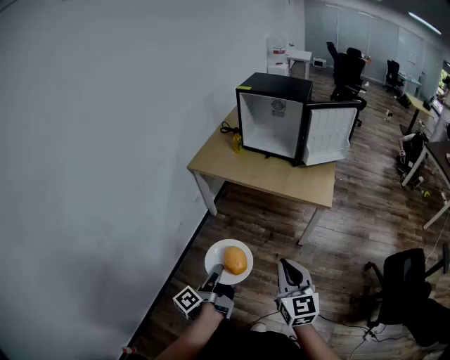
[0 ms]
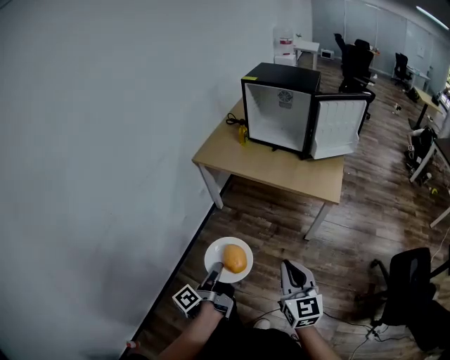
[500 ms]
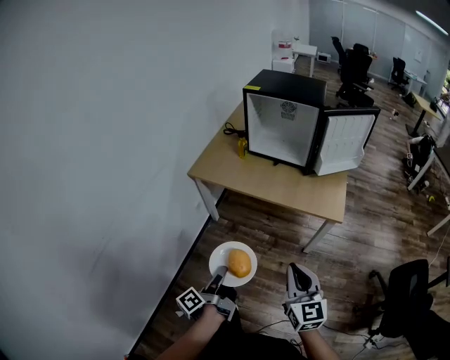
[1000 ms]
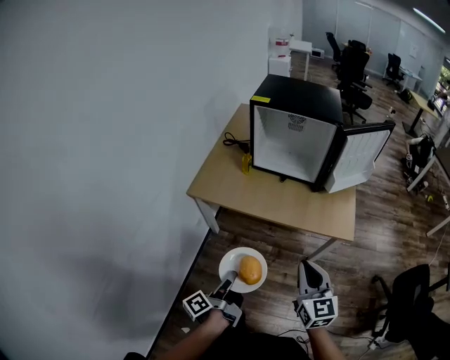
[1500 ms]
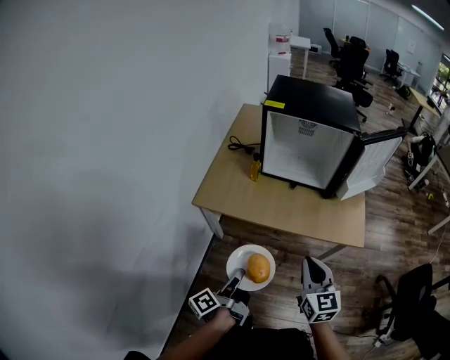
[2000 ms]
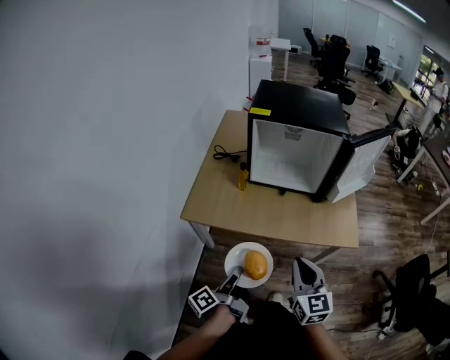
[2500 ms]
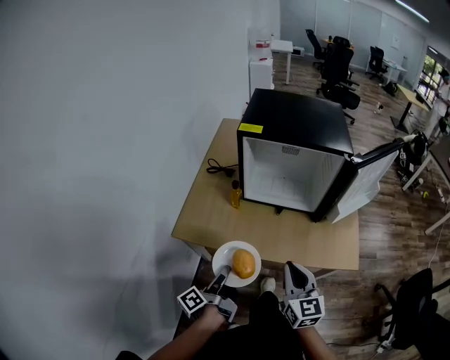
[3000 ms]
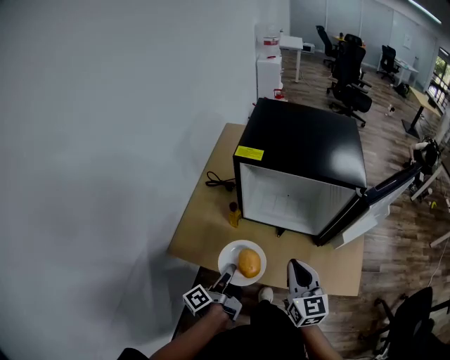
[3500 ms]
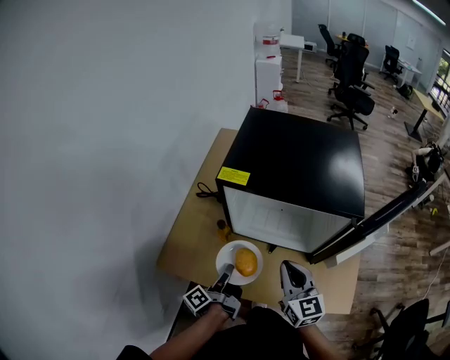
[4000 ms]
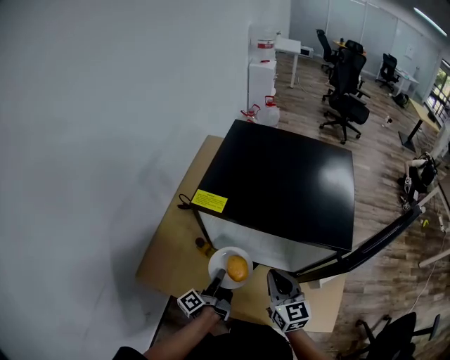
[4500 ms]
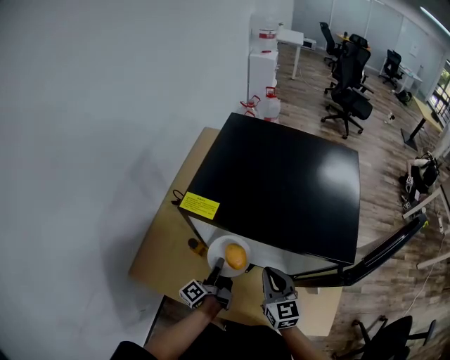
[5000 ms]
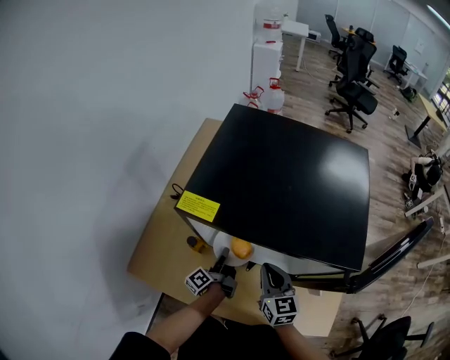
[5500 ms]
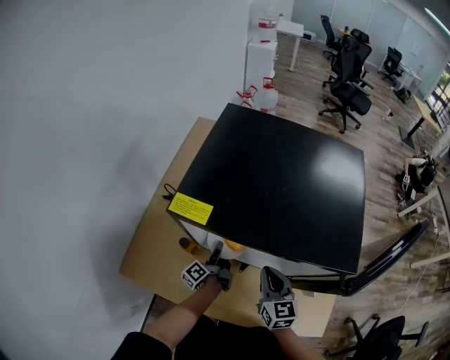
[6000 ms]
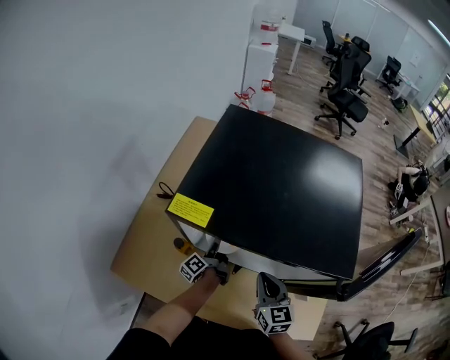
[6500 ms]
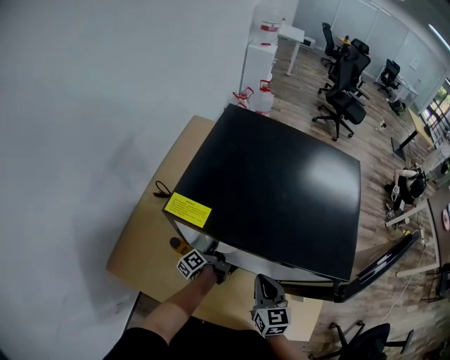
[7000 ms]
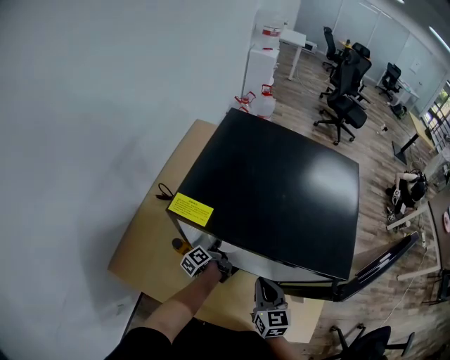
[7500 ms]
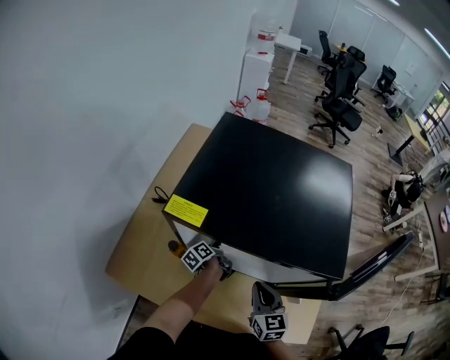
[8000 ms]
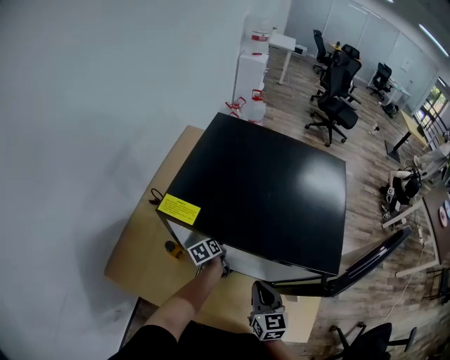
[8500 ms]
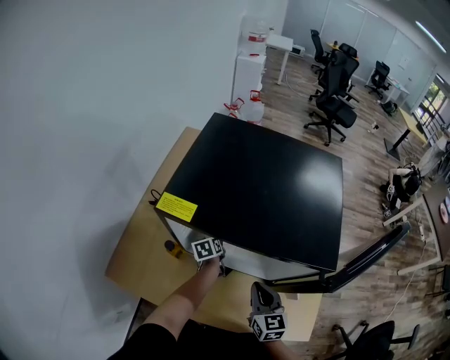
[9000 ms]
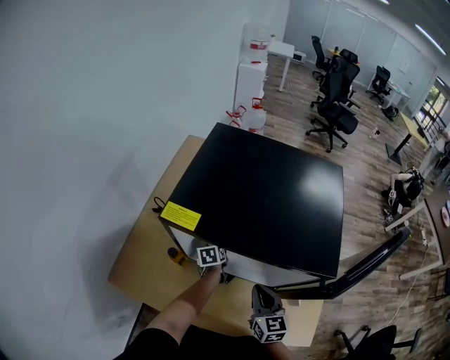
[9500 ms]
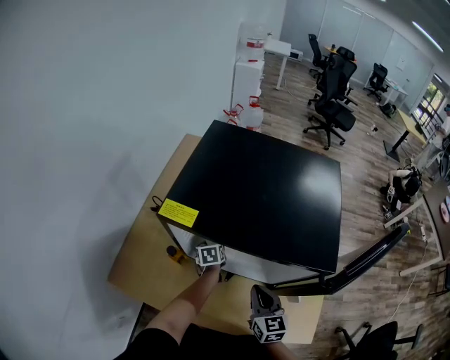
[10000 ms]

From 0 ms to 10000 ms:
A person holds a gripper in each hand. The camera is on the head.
From 0 ms to 2000 ms: The right gripper shifts by approximately 35 cm.
From 2000 ms to 4000 ms: The right gripper ends up approximately 35 cm from where it was.
From 4000 ms to 6000 ms: The right gripper moves approximately 15 cm.

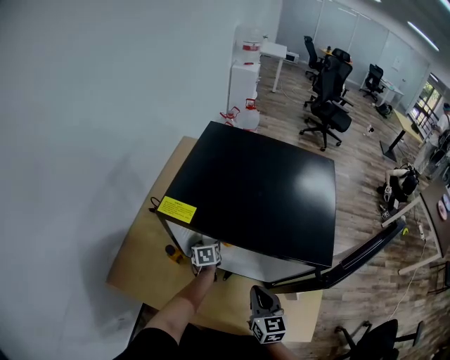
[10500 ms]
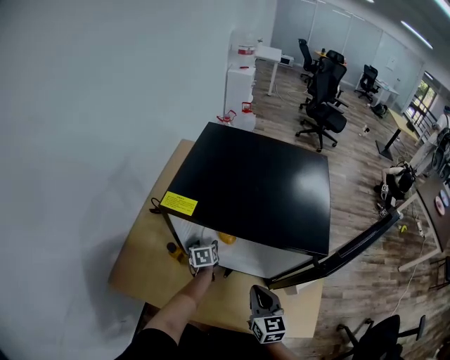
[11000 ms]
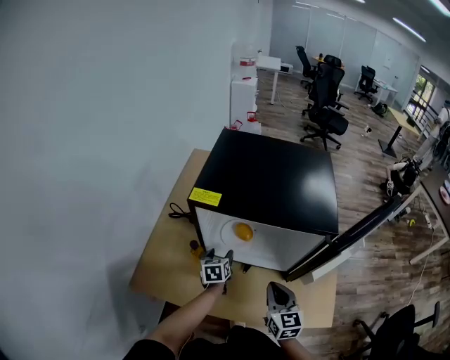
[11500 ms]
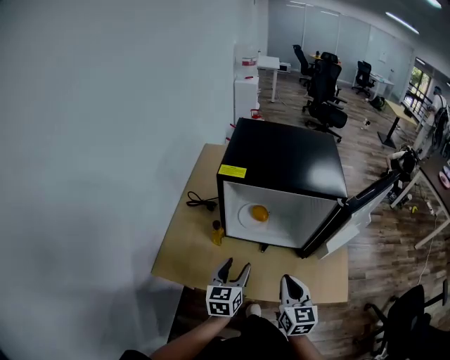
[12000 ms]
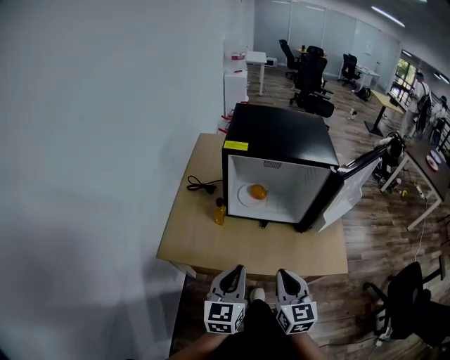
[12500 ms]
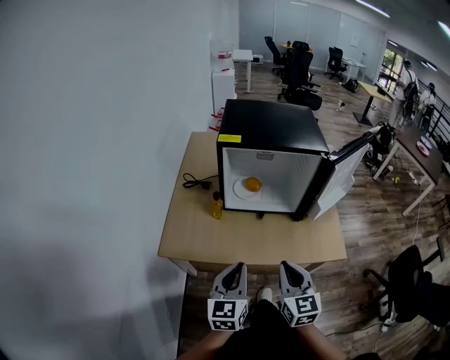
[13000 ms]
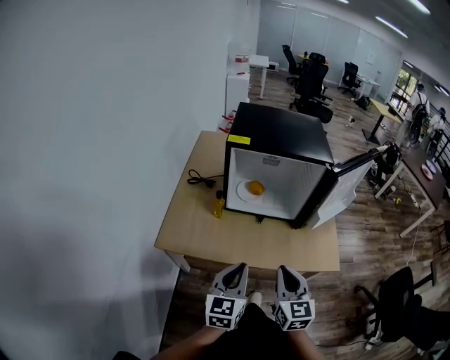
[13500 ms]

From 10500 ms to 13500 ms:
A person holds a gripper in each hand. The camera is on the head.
From 10500 ms to 12000 ms: The right gripper shifts by about 15 cm.
From 12000 ms to 13500 ms: The right gripper moves some 15 cm.

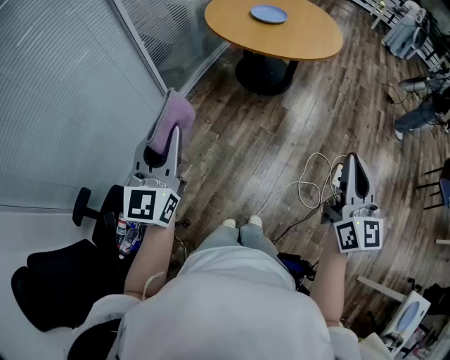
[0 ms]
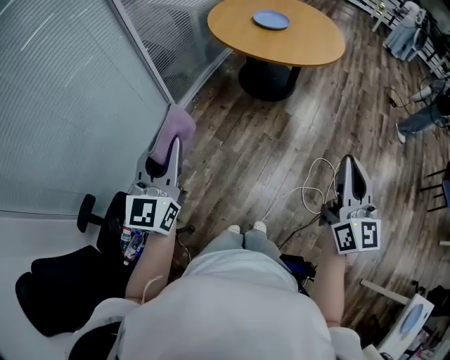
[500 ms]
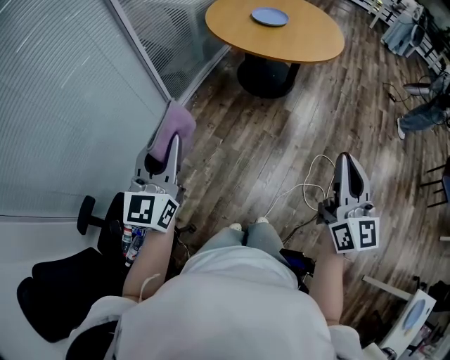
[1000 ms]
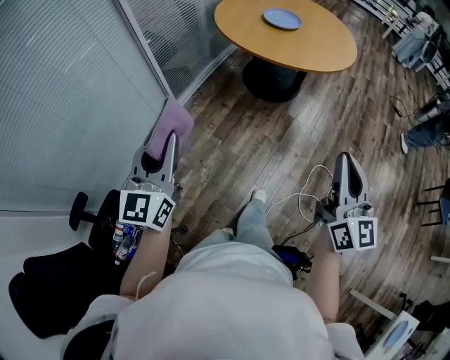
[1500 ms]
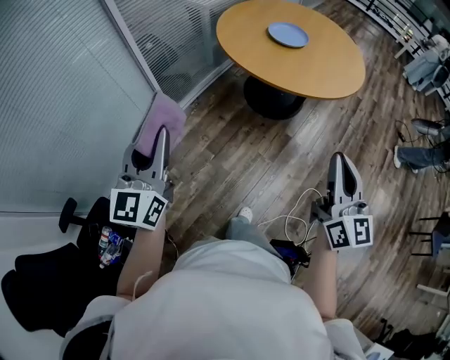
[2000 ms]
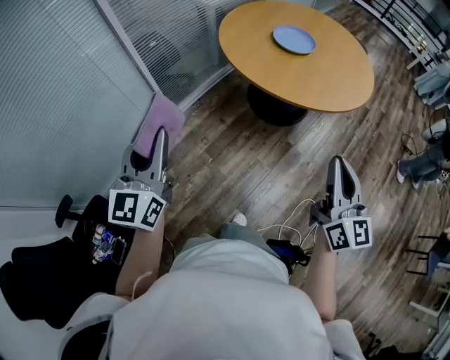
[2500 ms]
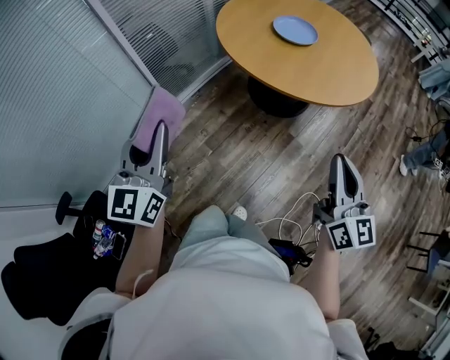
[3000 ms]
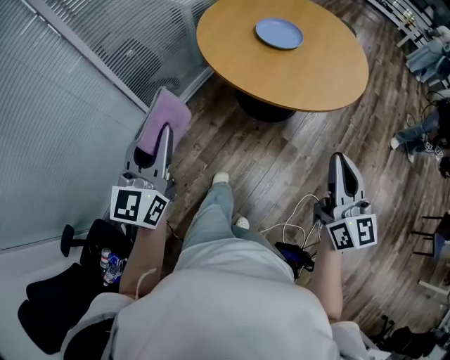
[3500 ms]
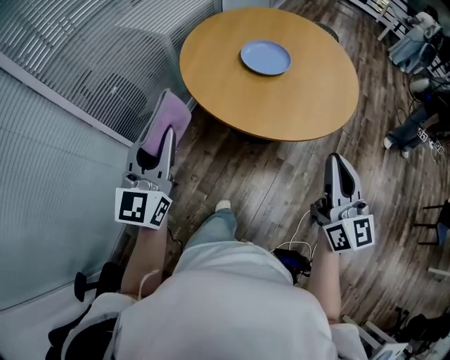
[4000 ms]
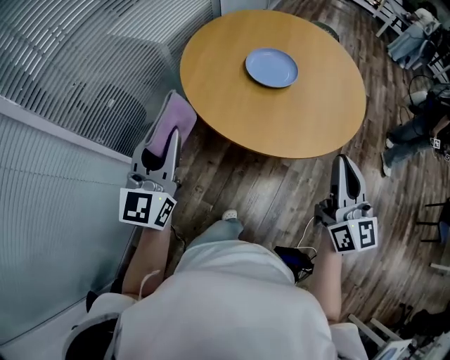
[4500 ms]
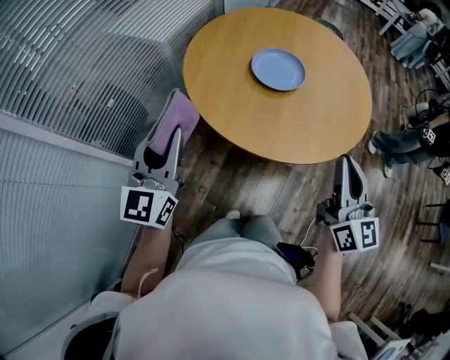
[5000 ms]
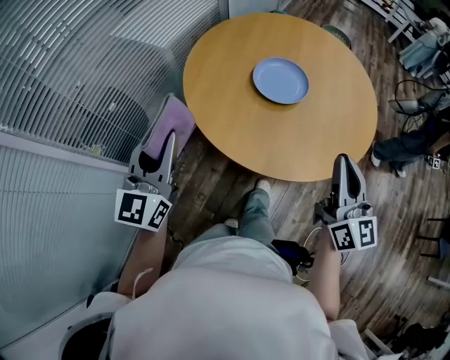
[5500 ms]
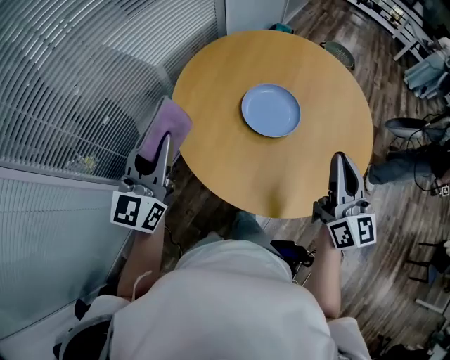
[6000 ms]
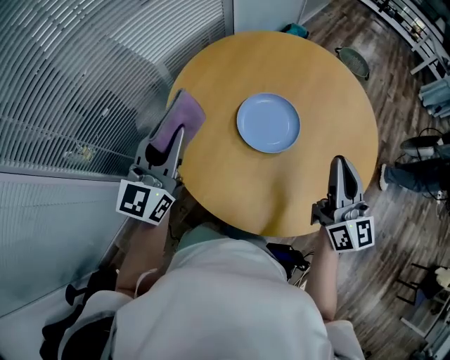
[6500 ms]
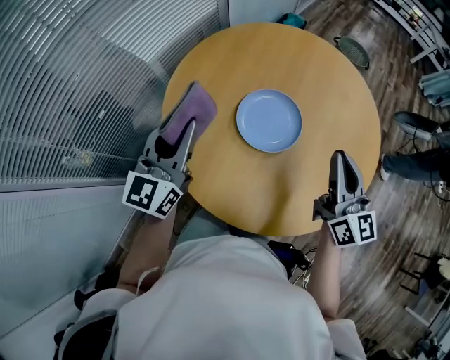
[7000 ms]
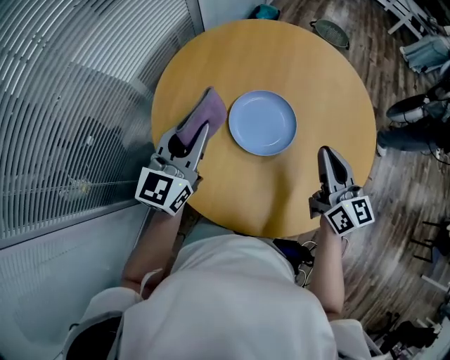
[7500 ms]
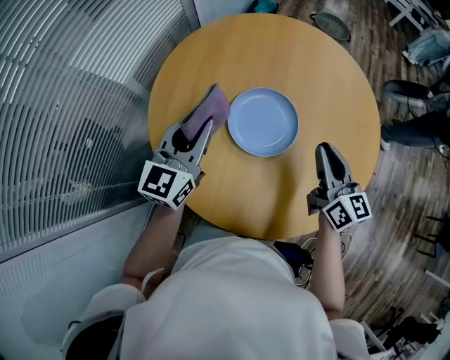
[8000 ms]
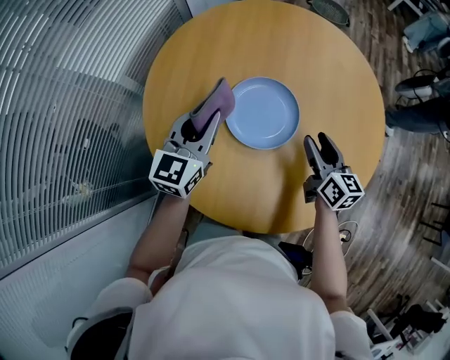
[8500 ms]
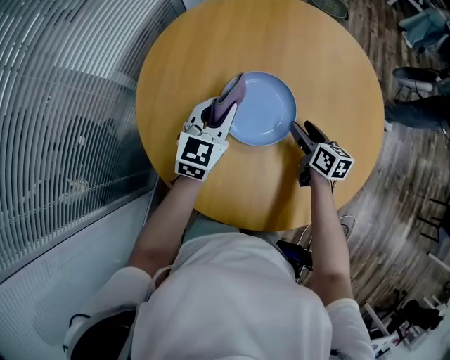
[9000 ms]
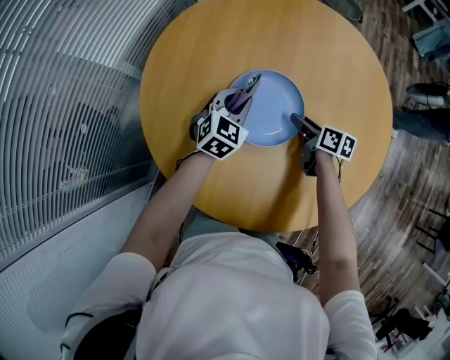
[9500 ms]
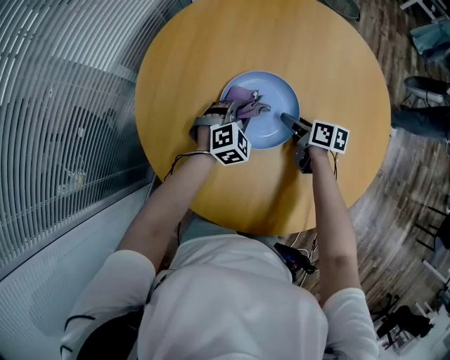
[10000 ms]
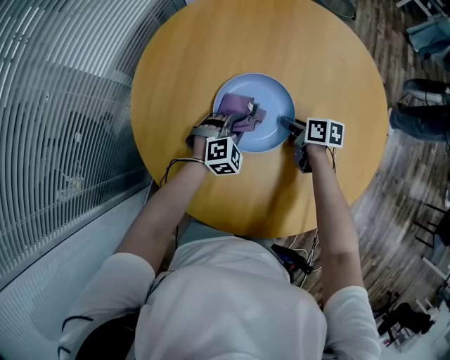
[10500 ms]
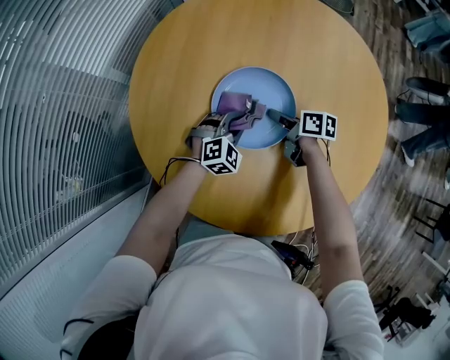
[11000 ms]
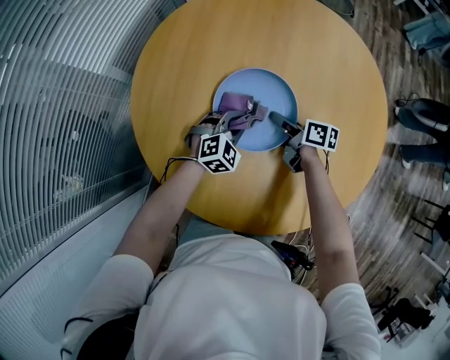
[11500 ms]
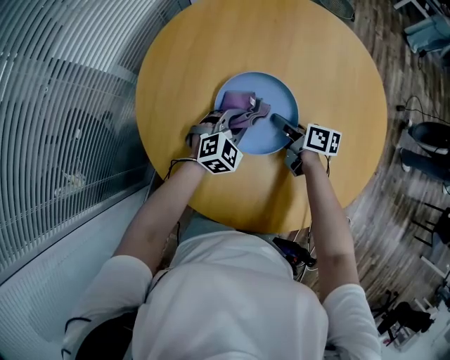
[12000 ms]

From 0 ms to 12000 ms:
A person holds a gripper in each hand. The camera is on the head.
From 0 ms to 2000 ms: The two grippers go approximately 20 cm forward.
From 2000 ms to 4000 ms: Both grippers move forward, some 30 cm.
From 4000 ms to 6000 ms: The two grippers go approximately 35 cm forward.
From 6000 ms to 8000 ms: The right gripper heads forward and downward, covering roughly 20 cm. Meanwhile the left gripper travels forward and to the right by approximately 25 cm, and swivels some 20 degrees.
From 8000 ms to 10000 ms: The right gripper is displaced downward and forward by roughly 25 cm, turns by about 50 degrees, and opens up; the left gripper travels downward and to the right by some 30 cm, and tilts its fingers approximately 40 degrees downward.
From 10000 ms to 12000 ms: The right gripper changes place by some 5 cm, and closes.

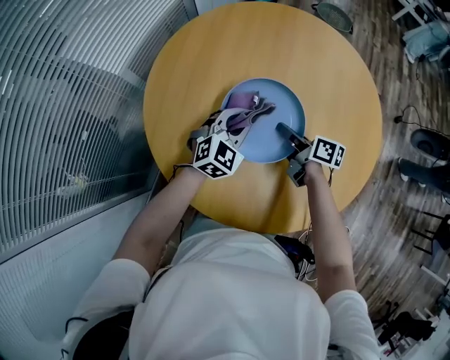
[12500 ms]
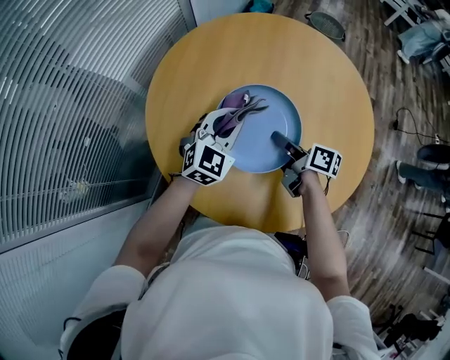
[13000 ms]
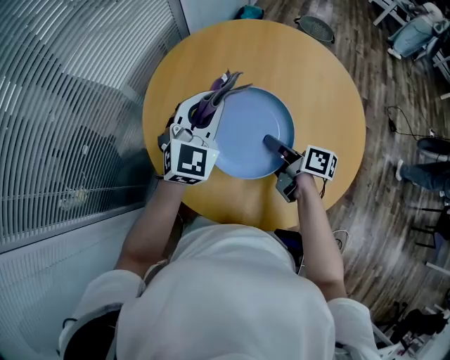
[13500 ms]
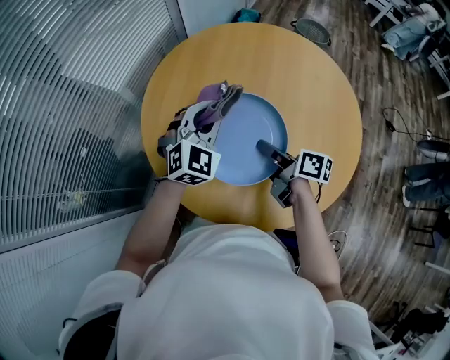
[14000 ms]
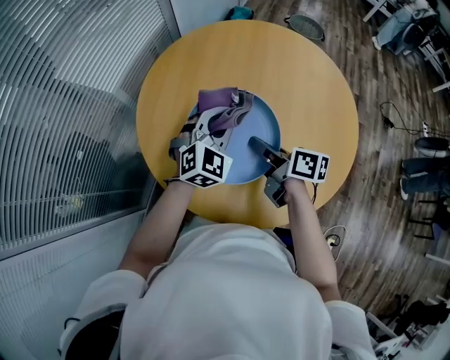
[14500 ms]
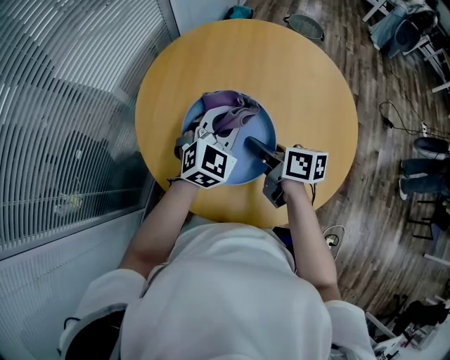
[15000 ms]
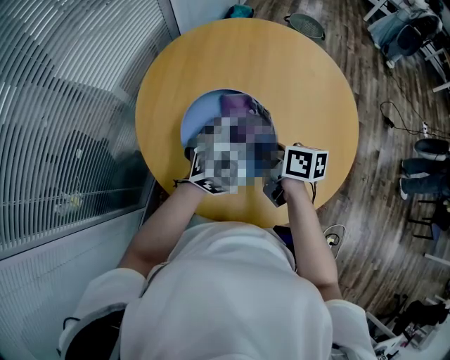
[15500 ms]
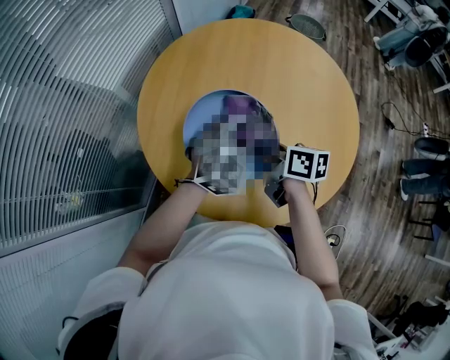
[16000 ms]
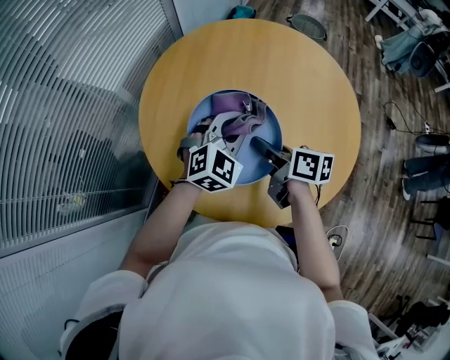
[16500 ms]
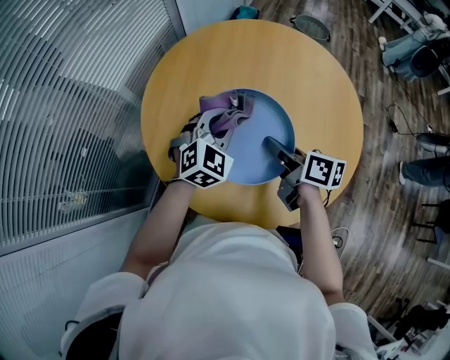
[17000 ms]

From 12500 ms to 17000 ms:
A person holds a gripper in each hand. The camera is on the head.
From 12500 ms to 14500 ms: The left gripper travels upward by approximately 15 cm. Meanwhile the right gripper goes about 15 cm upward and backward.
